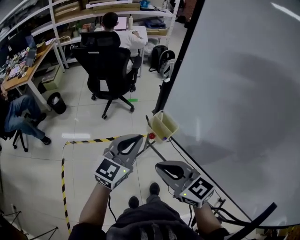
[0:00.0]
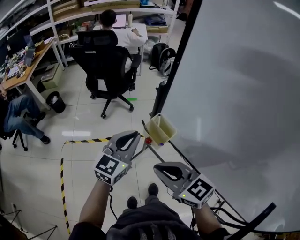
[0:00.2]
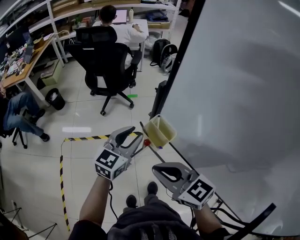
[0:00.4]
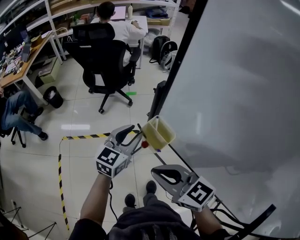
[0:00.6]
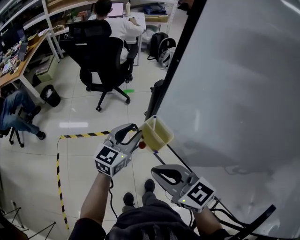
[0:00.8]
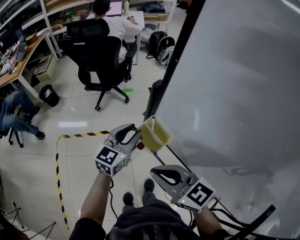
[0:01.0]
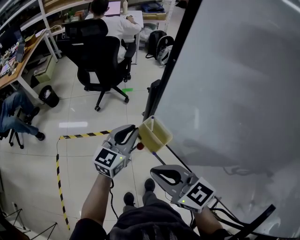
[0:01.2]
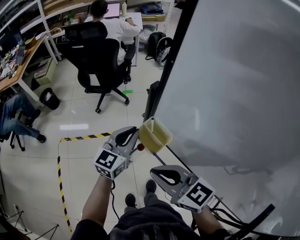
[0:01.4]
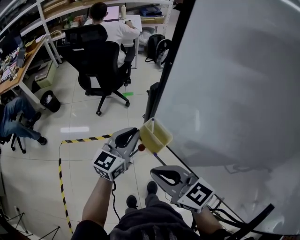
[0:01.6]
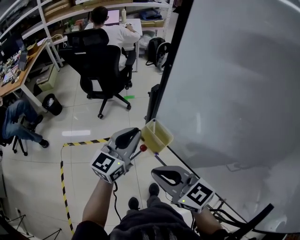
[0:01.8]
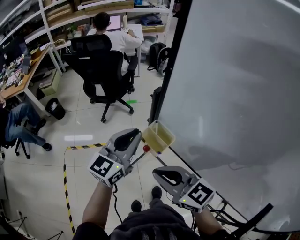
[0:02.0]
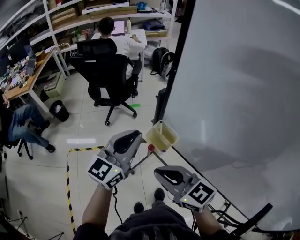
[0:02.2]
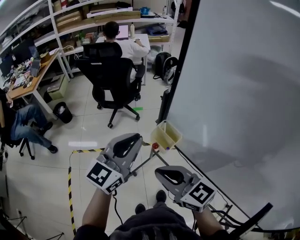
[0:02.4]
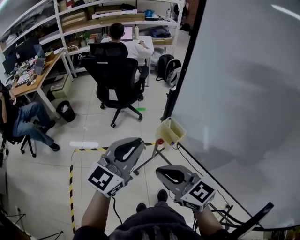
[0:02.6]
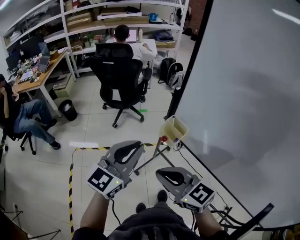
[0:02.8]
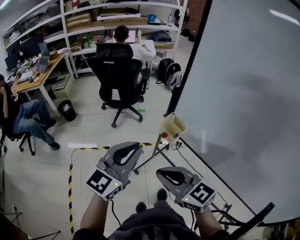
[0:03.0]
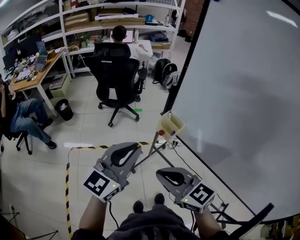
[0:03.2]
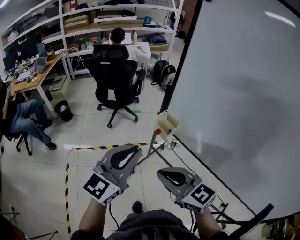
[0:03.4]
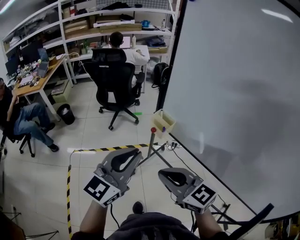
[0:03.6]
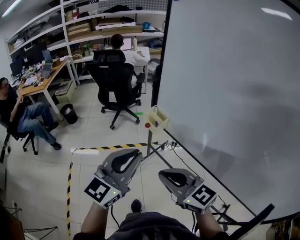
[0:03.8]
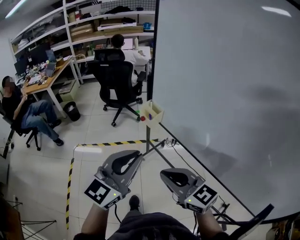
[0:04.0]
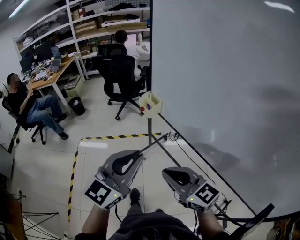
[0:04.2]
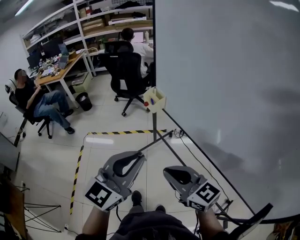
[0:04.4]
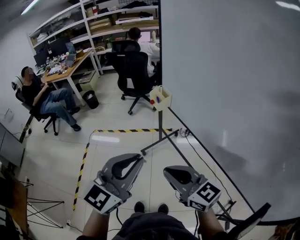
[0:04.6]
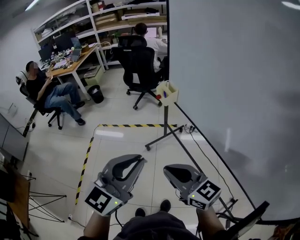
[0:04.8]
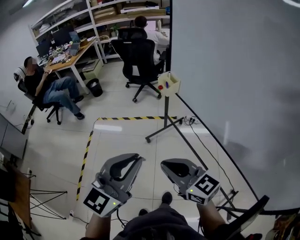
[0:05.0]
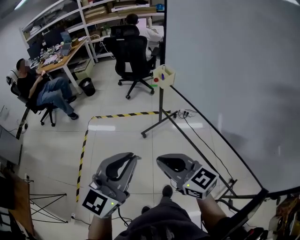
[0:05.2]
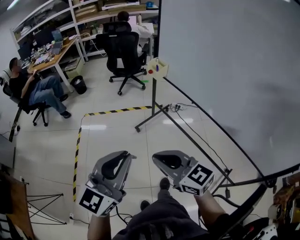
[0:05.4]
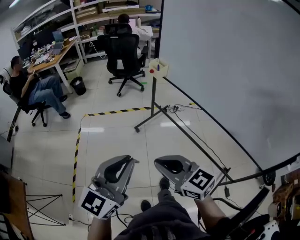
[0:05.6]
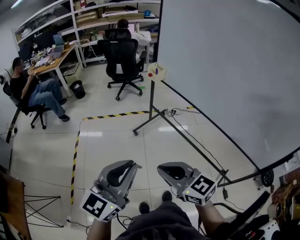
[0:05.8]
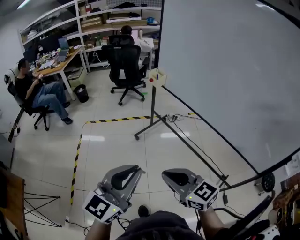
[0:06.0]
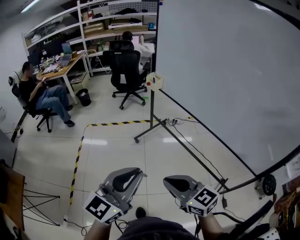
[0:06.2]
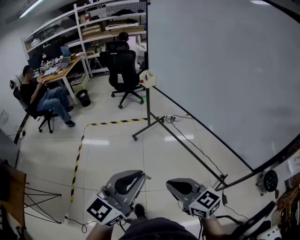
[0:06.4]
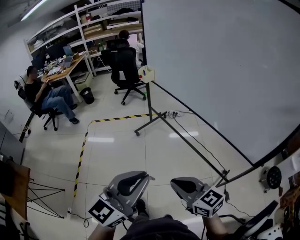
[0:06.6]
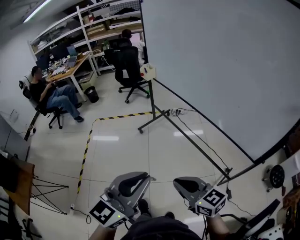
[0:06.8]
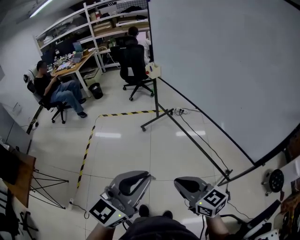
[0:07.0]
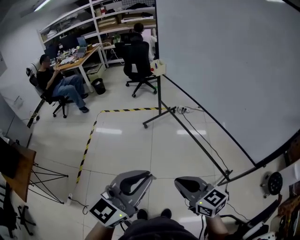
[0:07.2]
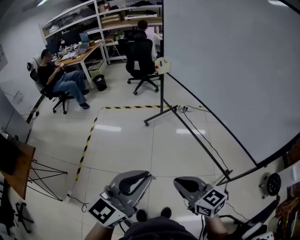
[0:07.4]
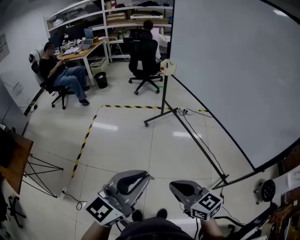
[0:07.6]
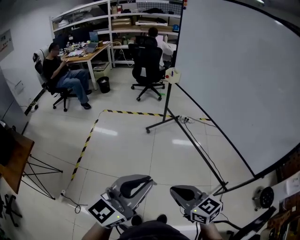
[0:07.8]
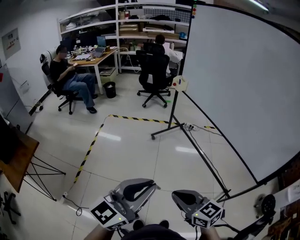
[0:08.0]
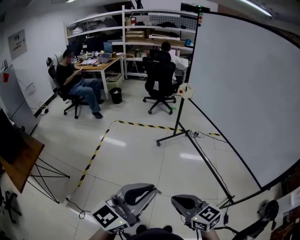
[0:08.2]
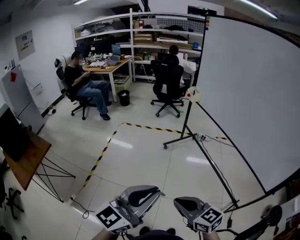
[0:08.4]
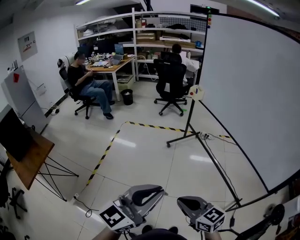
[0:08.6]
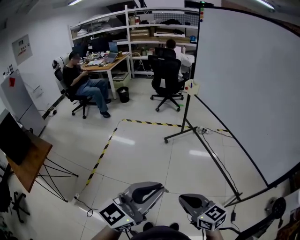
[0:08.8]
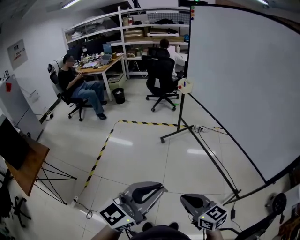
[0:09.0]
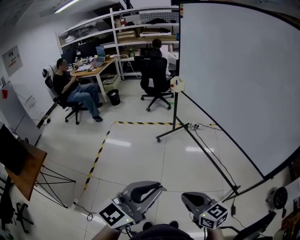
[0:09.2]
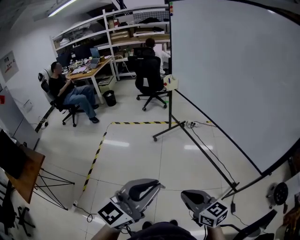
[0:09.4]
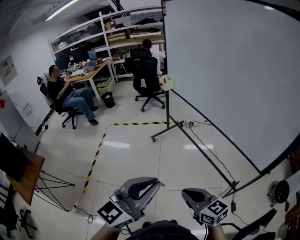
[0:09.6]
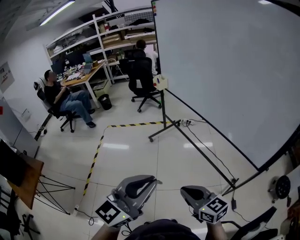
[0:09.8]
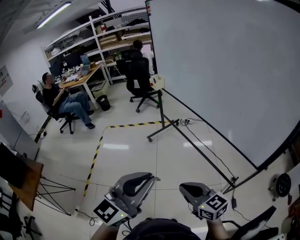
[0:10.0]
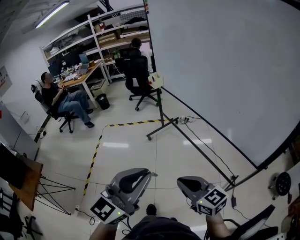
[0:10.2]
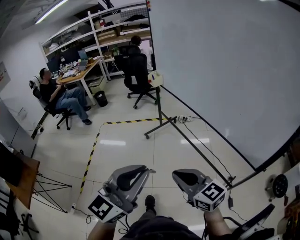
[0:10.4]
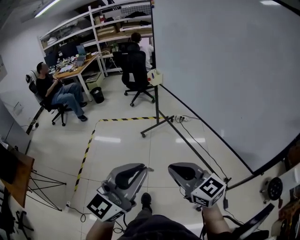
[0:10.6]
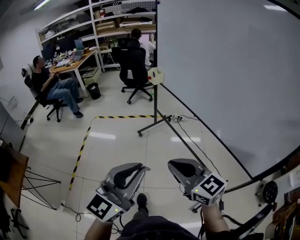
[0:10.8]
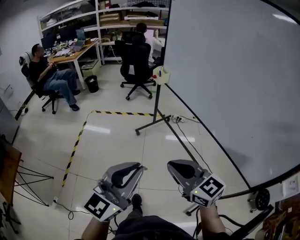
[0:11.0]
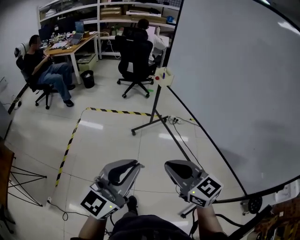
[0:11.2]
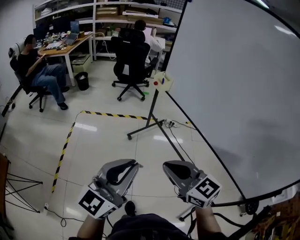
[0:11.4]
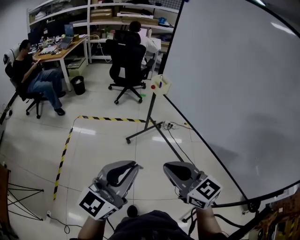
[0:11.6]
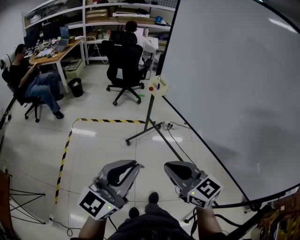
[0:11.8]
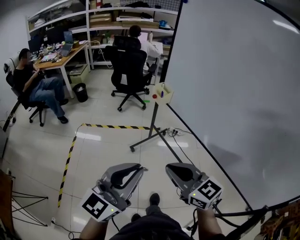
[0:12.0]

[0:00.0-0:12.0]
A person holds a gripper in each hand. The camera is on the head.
0:00.0 to 0:01.6: The right gripper goes about 5 cm forward, while the left gripper goes about 15 cm forward, downward and to the right, and opens, then closes once more.
0:01.6 to 0:03.0: The left gripper is displaced backward, upward and to the left by approximately 25 cm. The right gripper shifts some 15 cm backward and to the left.
0:03.0 to 0:04.4: The grippers both shift backward and to the right by roughly 30 cm.
0:04.4 to 0:06.0: Both grippers travel together backward and to the left, some 30 cm.
0:06.0 to 0:07.6: The two grippers go roughly 20 cm backward and to the right.
0:07.6 to 0:09.0: The left gripper moves some 10 cm to the left and comes back. The right gripper reaches about 10 cm to the left, then returns.
0:09.0 to 0:10.4: The right gripper heads to the right, forward and upward, covering roughly 15 cm; the left gripper moves to the right, approximately 10 cm.
0:10.4 to 0:12.0: Both grippers travel together forward, about 35 cm.

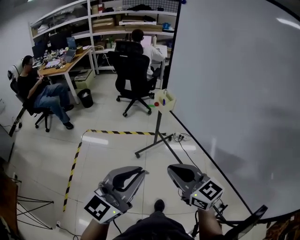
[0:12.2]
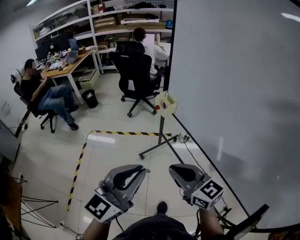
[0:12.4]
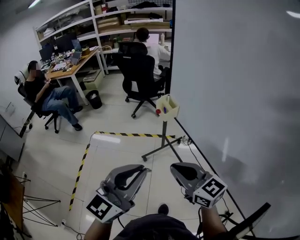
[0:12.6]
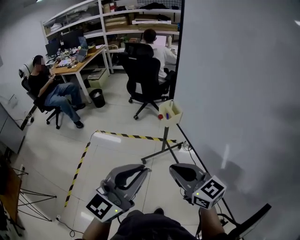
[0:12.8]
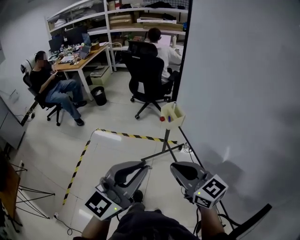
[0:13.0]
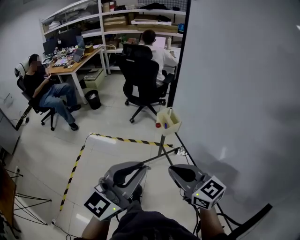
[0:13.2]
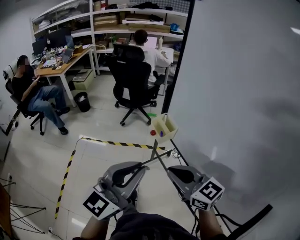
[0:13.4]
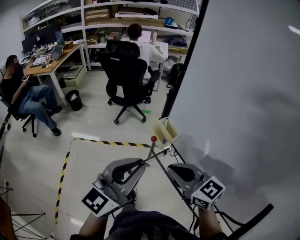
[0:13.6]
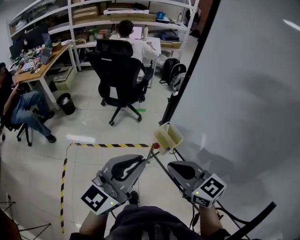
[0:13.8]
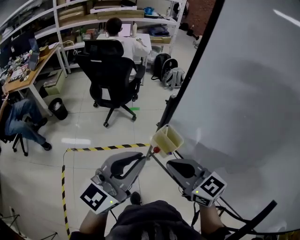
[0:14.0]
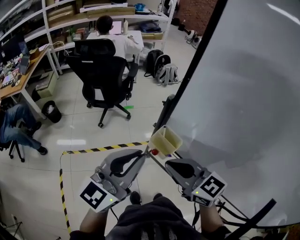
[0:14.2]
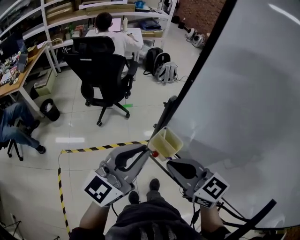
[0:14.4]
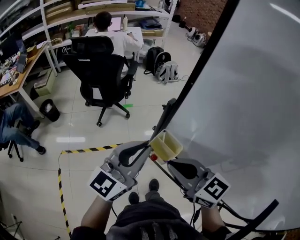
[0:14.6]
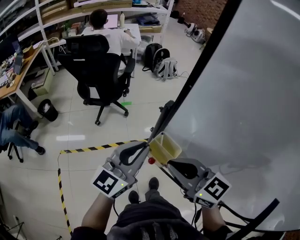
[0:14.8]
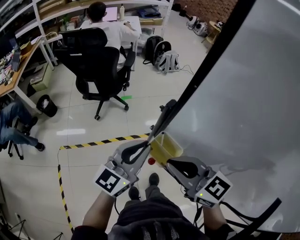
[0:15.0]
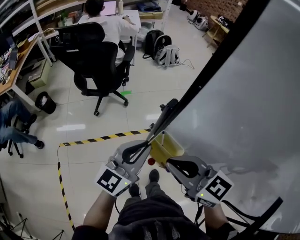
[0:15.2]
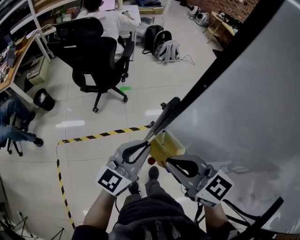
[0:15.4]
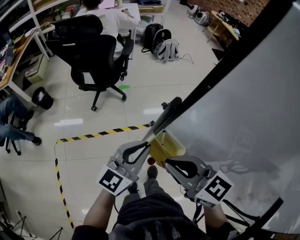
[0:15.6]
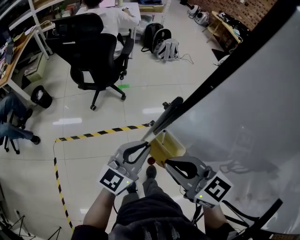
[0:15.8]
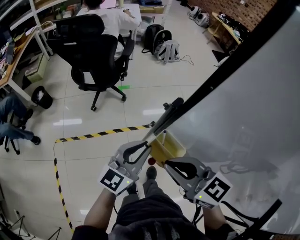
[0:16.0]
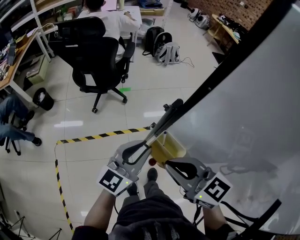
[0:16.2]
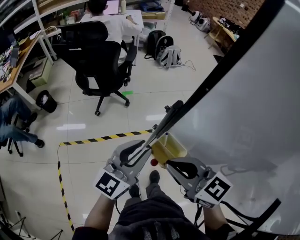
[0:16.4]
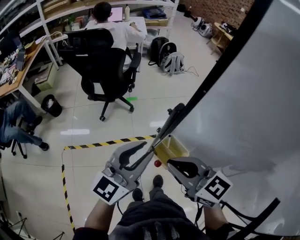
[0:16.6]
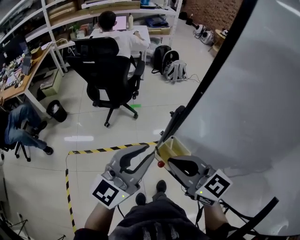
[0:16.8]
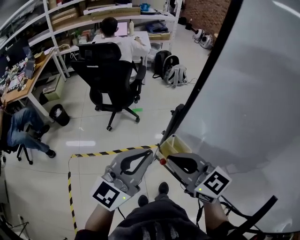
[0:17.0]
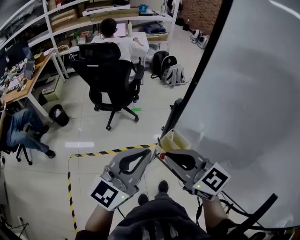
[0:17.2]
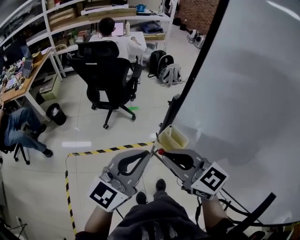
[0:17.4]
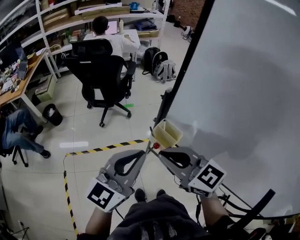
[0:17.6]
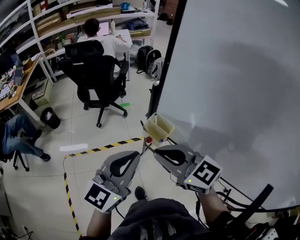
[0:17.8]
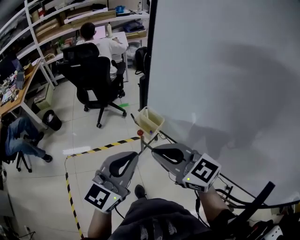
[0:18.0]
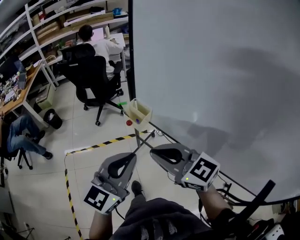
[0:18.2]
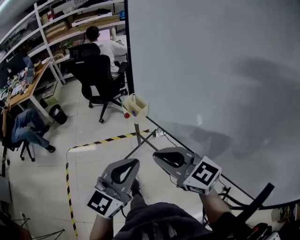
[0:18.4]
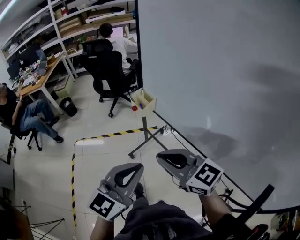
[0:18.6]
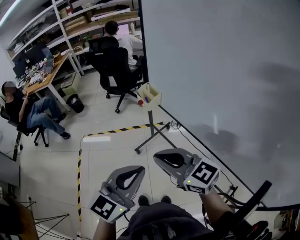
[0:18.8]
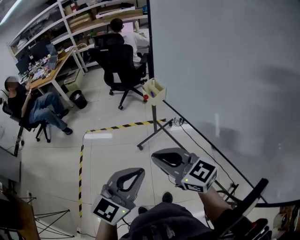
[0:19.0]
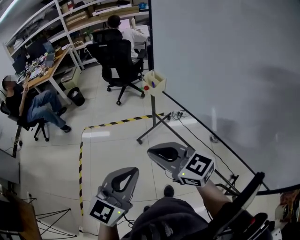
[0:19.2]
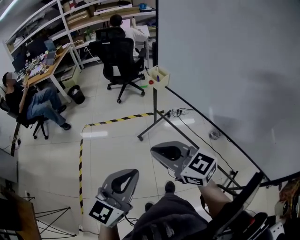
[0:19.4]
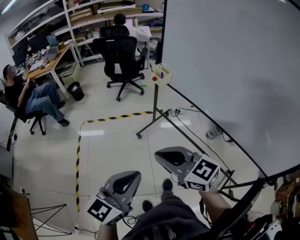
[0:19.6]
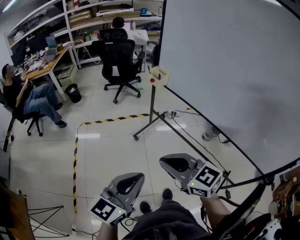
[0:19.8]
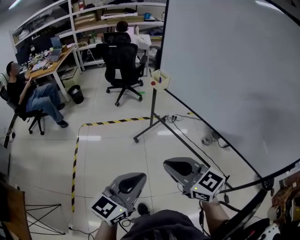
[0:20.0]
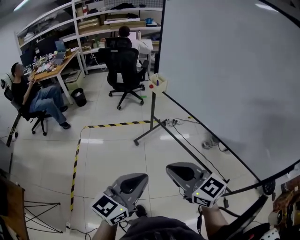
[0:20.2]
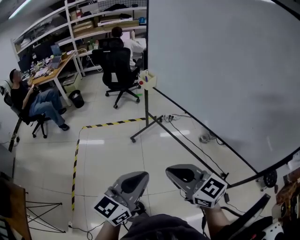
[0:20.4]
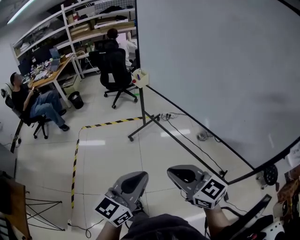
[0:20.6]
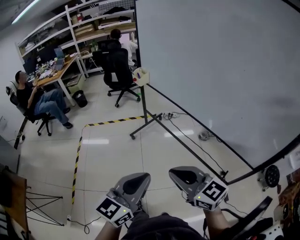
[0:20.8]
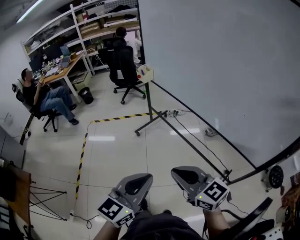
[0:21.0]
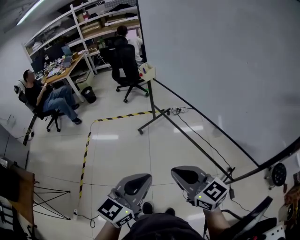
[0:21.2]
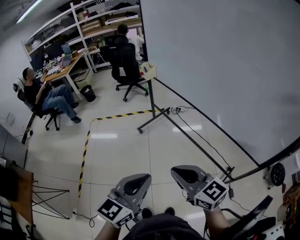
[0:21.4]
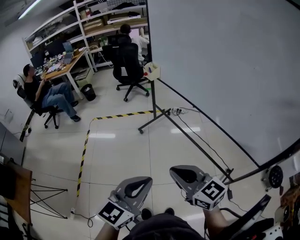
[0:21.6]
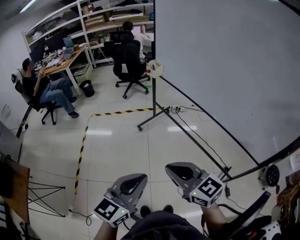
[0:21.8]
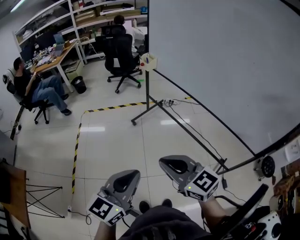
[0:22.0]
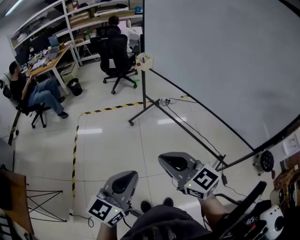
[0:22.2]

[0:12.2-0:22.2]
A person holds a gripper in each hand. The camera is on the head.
0:12.2 to 0:13.6: The two grippers go some 30 cm forward.
0:13.6 to 0:15.0: The left gripper moves forward, roughly 25 cm; the right gripper moves forward, about 15 cm.
0:16.4 to 0:18.0: Both grippers travel together backward, approximately 15 cm. The left gripper closes its fingers.
0:18.0 to 0:19.4: The two grippers go approximately 35 cm backward.
0:19.4 to 0:20.8: Both grippers move backward and to the right, approximately 30 cm.
0:20.8 to 0:22.2: The grippers both shift to the left by about 15 cm.

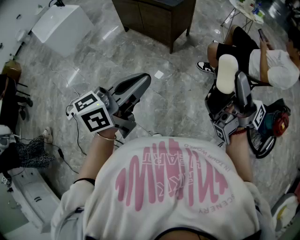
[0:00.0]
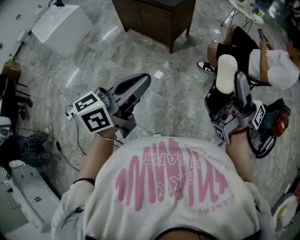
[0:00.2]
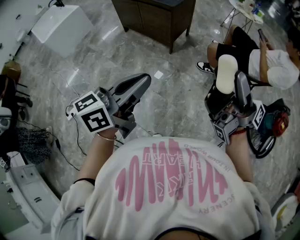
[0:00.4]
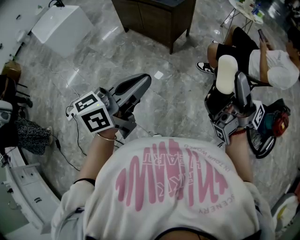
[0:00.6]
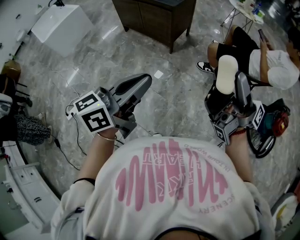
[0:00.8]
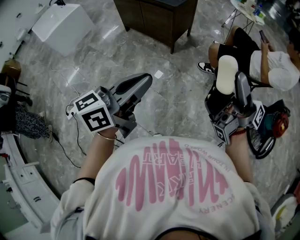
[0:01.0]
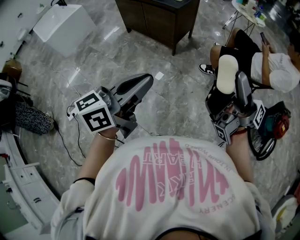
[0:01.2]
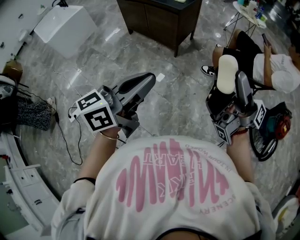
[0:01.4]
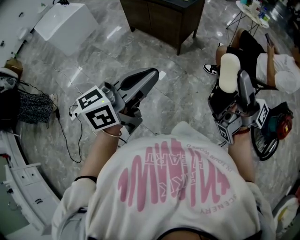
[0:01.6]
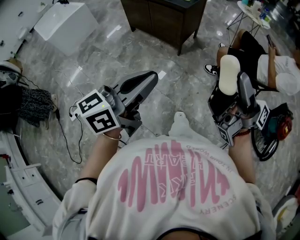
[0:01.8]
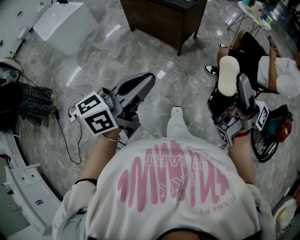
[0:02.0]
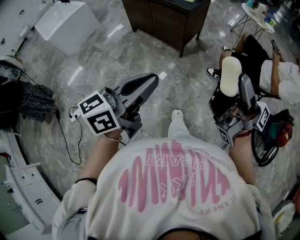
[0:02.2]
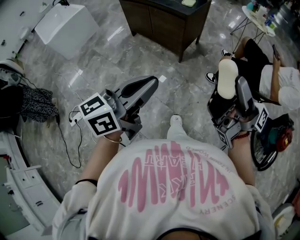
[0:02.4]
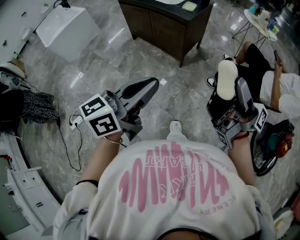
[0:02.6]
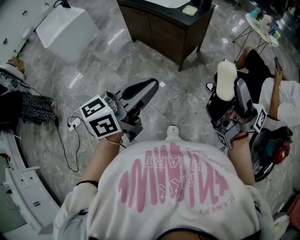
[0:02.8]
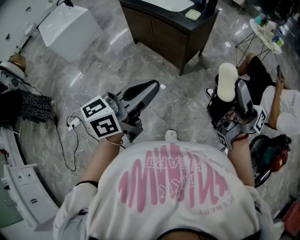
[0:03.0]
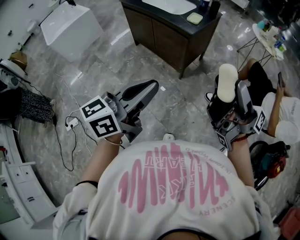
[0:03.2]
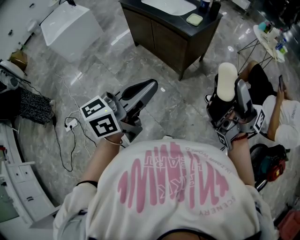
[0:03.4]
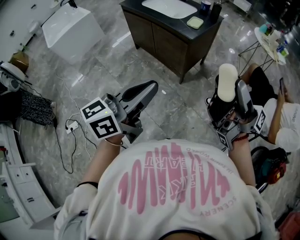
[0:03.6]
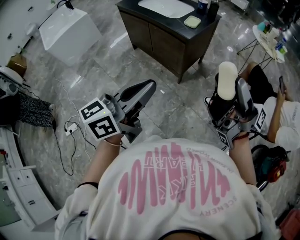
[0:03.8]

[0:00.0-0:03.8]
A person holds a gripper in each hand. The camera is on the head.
0:00.0 to 0:01.2: The grippers make only small movements.
0:01.2 to 0:02.6: The two grippers go about 15 cm forward.
0:02.6 to 0:03.8: Both grippers move forward, some 15 cm.
